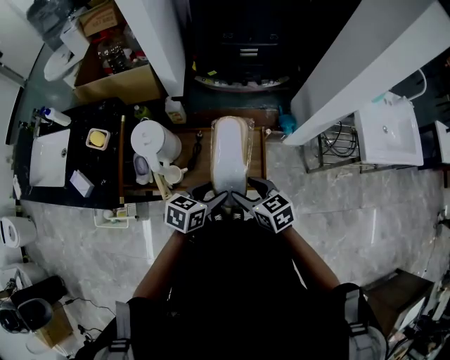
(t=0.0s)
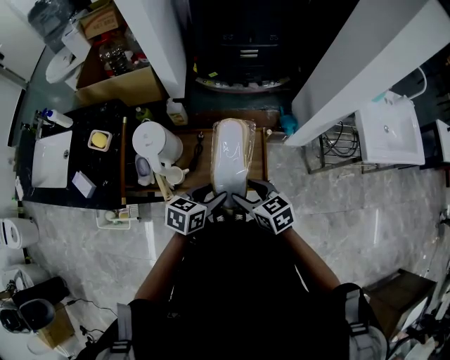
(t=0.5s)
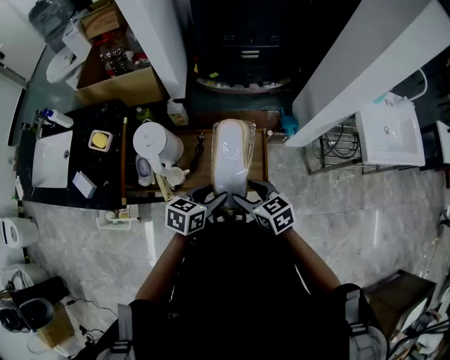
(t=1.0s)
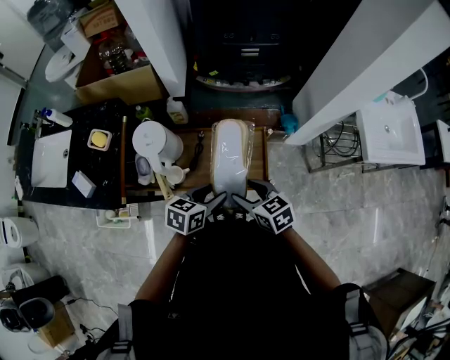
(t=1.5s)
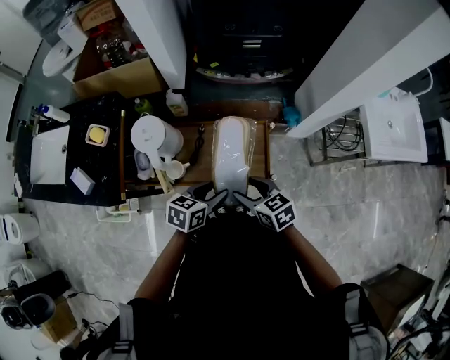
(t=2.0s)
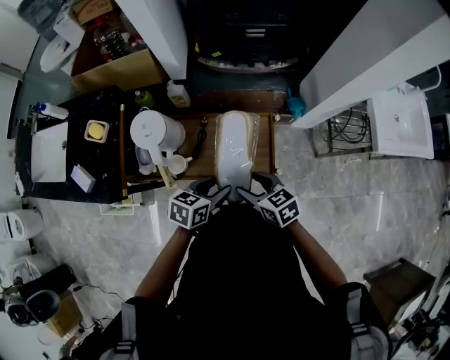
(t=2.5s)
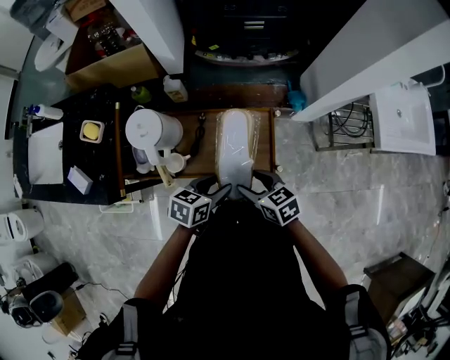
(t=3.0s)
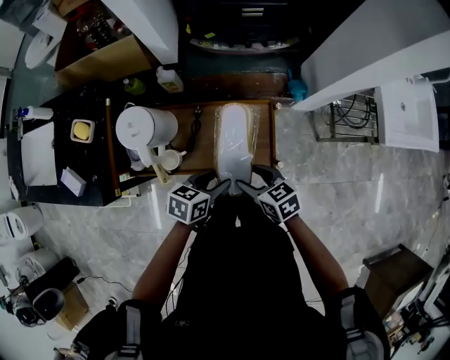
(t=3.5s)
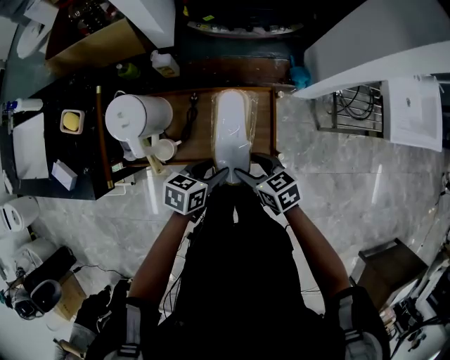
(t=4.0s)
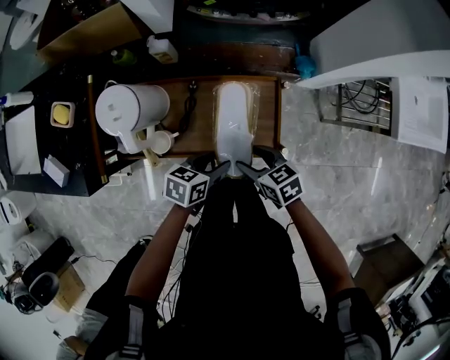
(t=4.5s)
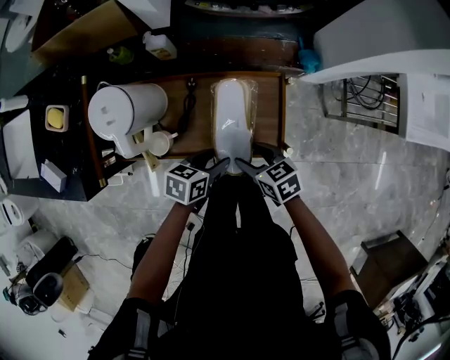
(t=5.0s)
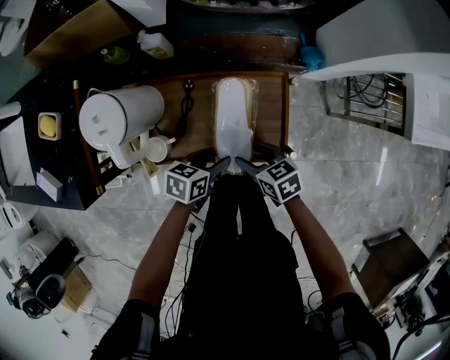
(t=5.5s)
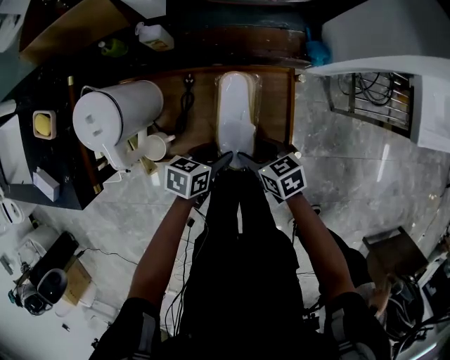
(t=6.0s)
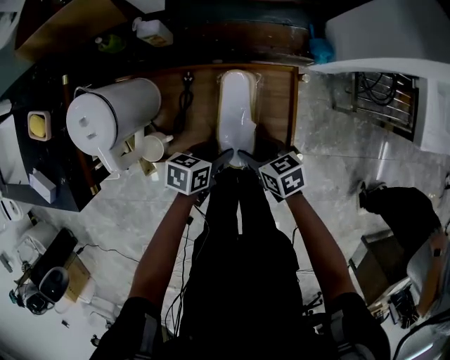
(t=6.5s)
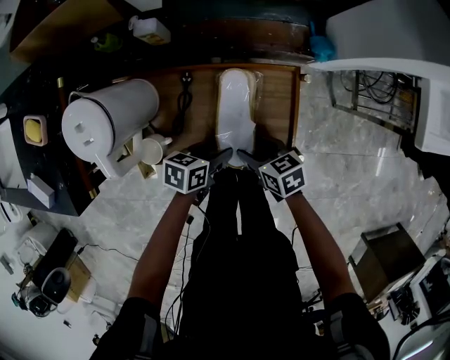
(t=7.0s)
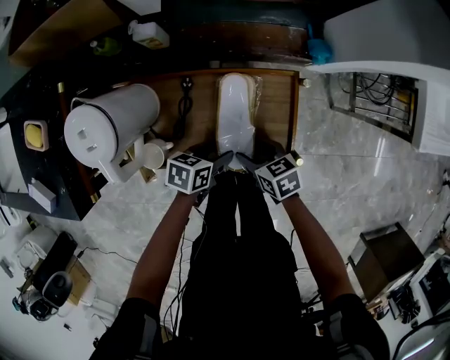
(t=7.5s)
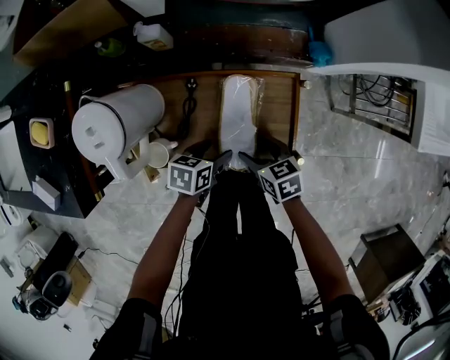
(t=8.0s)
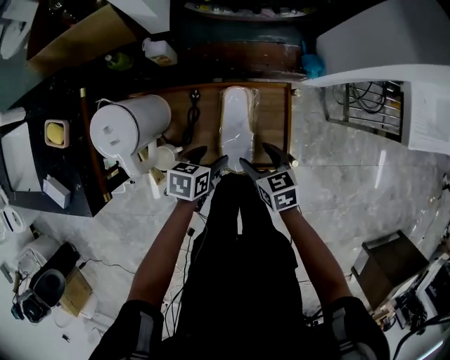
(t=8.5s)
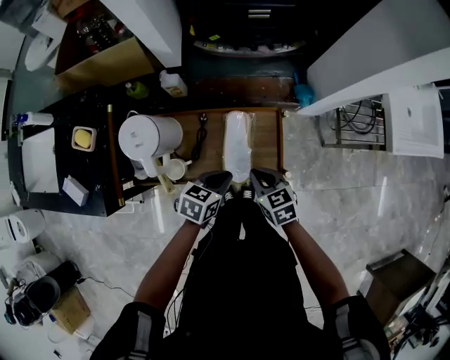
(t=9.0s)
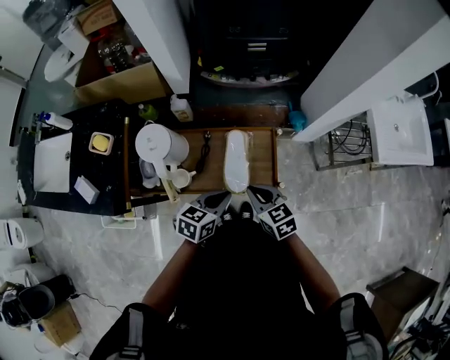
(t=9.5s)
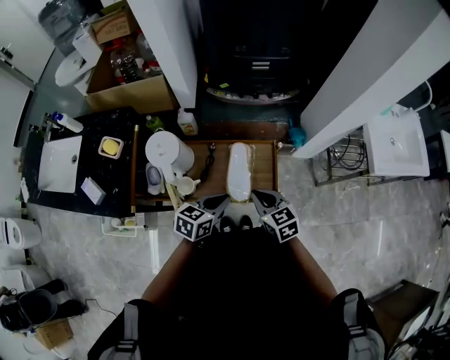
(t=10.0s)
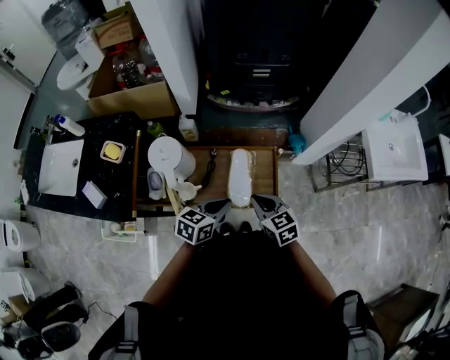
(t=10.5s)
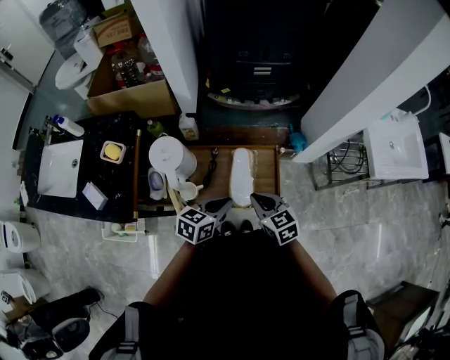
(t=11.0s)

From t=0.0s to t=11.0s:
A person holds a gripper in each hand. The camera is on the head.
From t=0.0s to t=2.0s: The grippers make only small movements.
From t=2.0s to t=3.5s: Both grippers travel together downward, roughly 5 cm.
From t=3.5s to t=5.5s: Both grippers travel together downward, about 15 cm.
From t=5.5s to t=7.5s: The left gripper travels downward by about 5 cm. Meanwhile the right gripper moves approximately 5 cm.
From t=7.5s to t=9.0s: Both grippers travel together upward, approximately 15 cm. The left gripper rotates some 20 degrees, and closes. The right gripper closes up.
From t=9.0s to t=11.0s: The two grippers go some 10 cm upward.

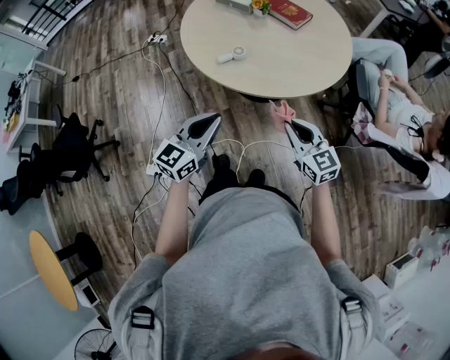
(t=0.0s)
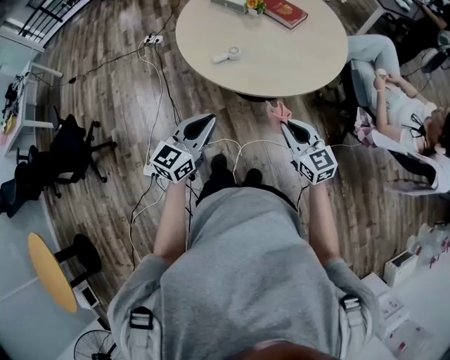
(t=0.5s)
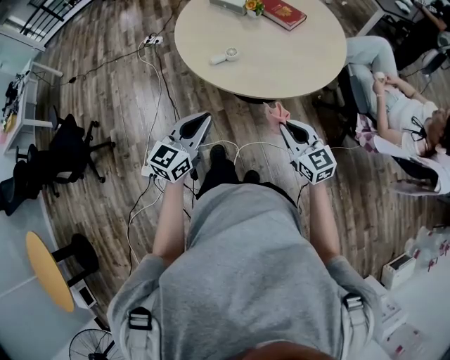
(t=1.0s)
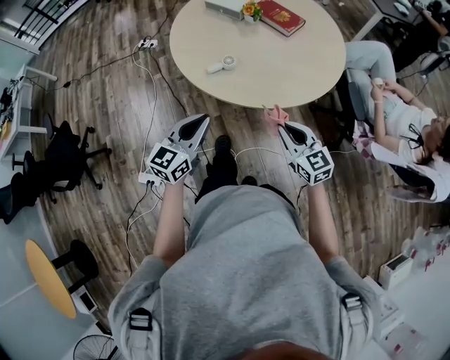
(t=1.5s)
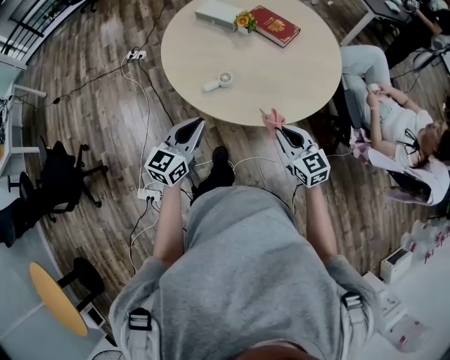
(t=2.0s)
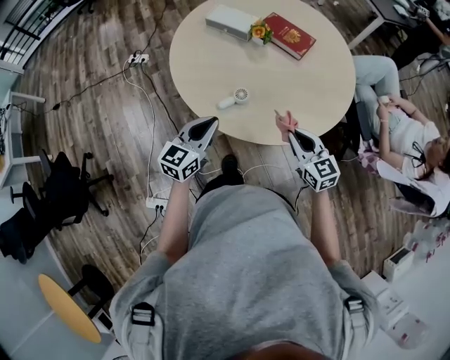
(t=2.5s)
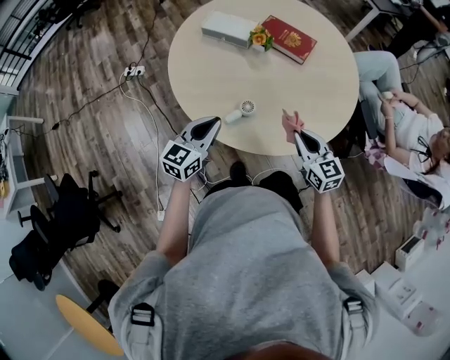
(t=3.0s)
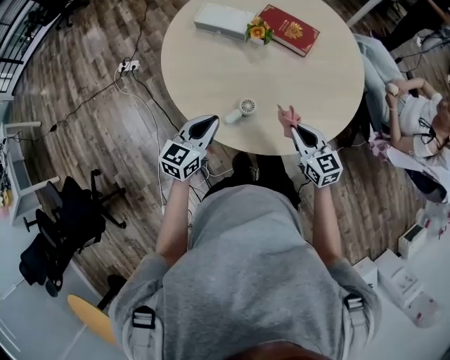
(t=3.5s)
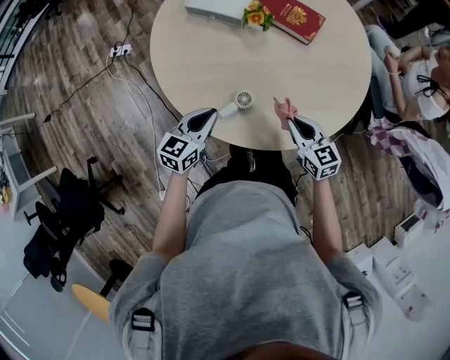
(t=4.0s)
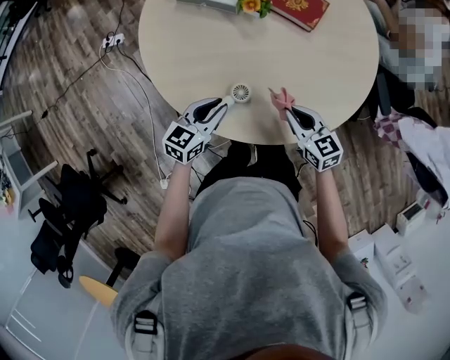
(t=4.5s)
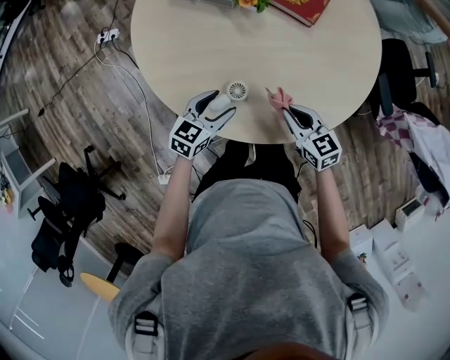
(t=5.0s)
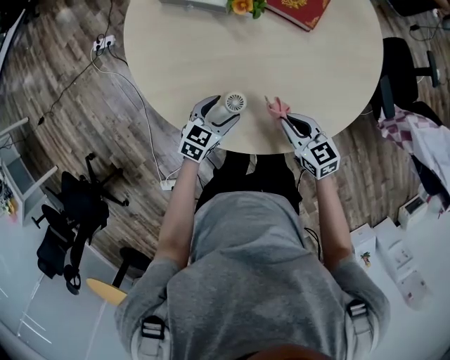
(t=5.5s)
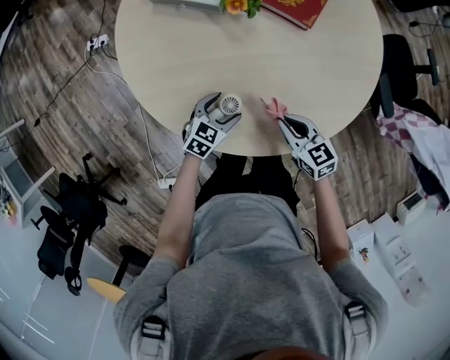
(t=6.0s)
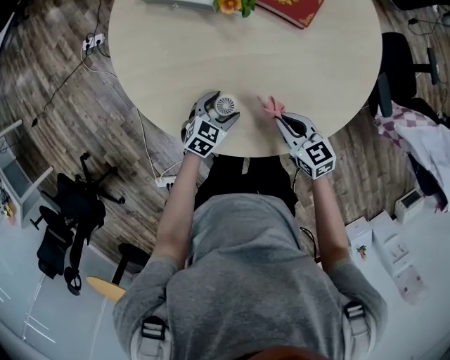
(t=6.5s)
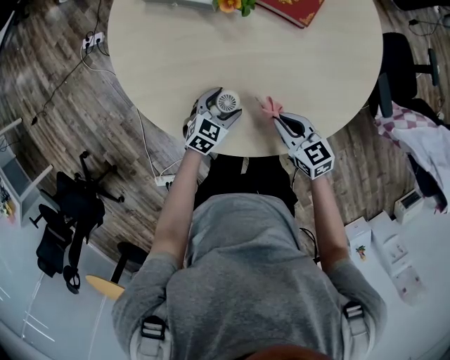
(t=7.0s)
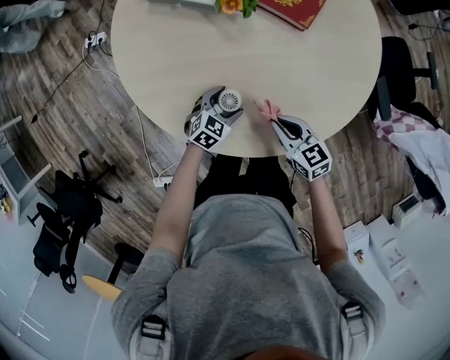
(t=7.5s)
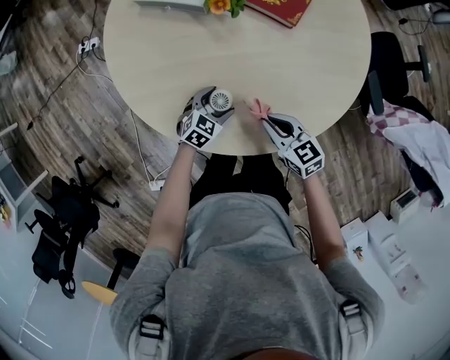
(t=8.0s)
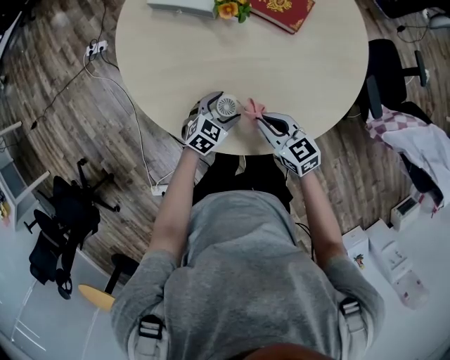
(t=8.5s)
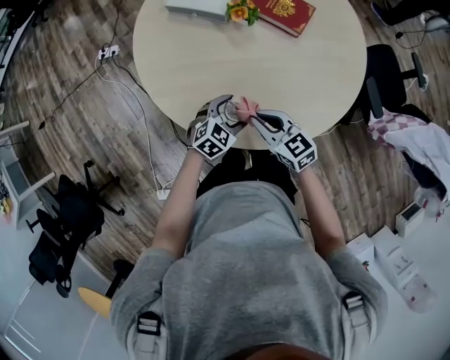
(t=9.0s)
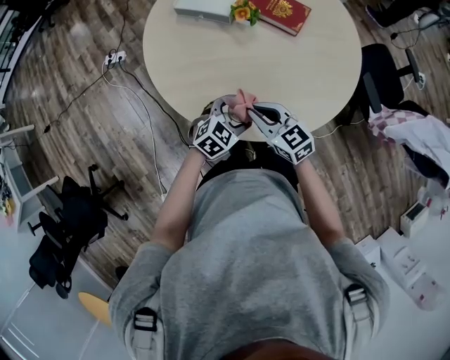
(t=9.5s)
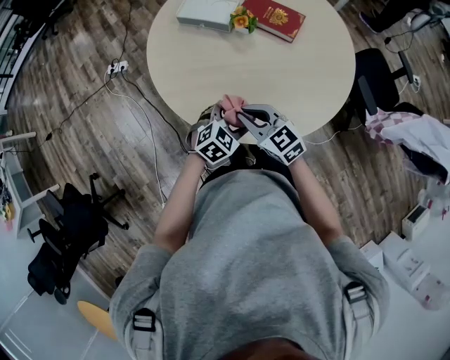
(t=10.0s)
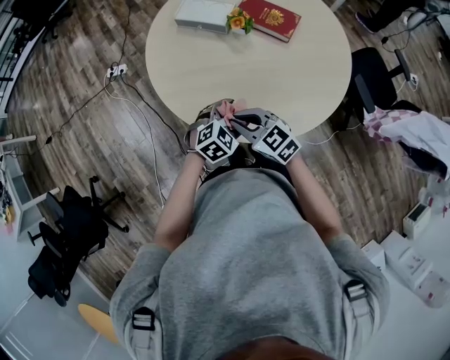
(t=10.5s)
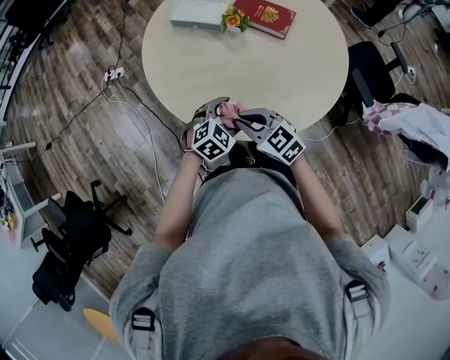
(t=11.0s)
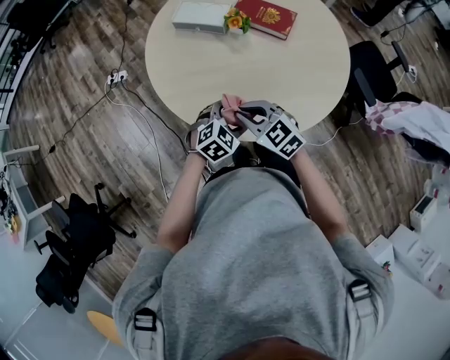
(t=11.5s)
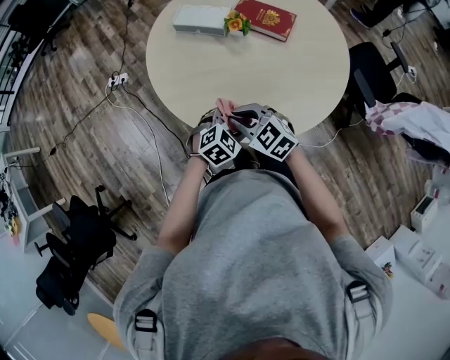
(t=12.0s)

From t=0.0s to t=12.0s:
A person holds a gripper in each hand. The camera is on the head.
From t=0.0s to t=2.0s: Both grippers move forward, approximately 15 cm.
From t=2.0s to t=4.0s: The two grippers go approximately 25 cm forward and downward. The left gripper turns by roughly 20 degrees.
From t=4.0s to t=6.0s: The right gripper shifts roughly 10 cm downward; the left gripper moves downward and to the right, about 20 cm, turns by roughly 30 degrees, and opens up.
From t=6.0s to t=8.0s: There are only small adjustments of the grippers.
From t=8.0s to t=10.0s: The right gripper moves upward, to the left and backward, some 20 cm, and swivels approximately 20 degrees, while the left gripper heads upward and backward, covering some 20 cm.
From t=10.0s to t=12.0s: The grippers move only a little.

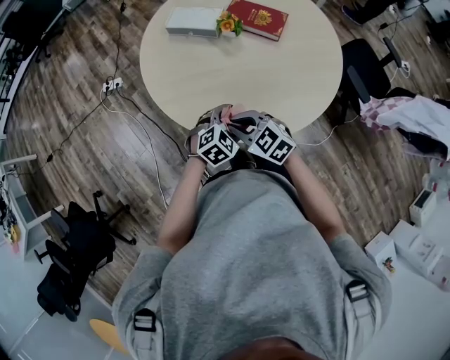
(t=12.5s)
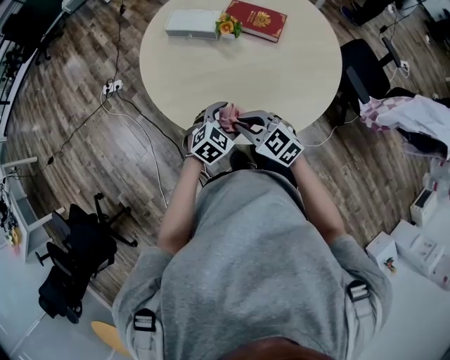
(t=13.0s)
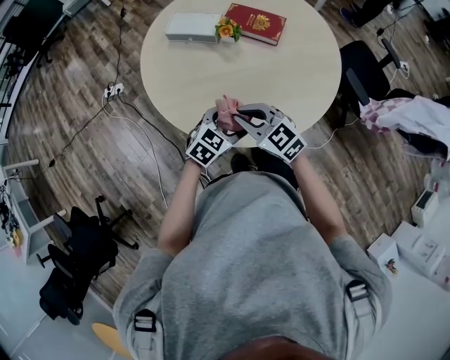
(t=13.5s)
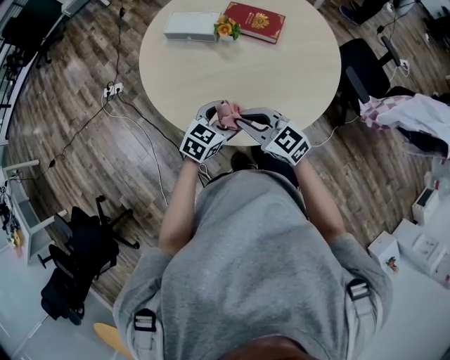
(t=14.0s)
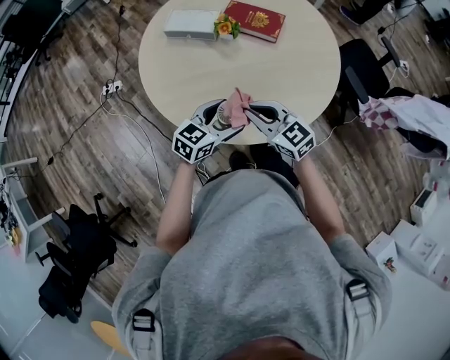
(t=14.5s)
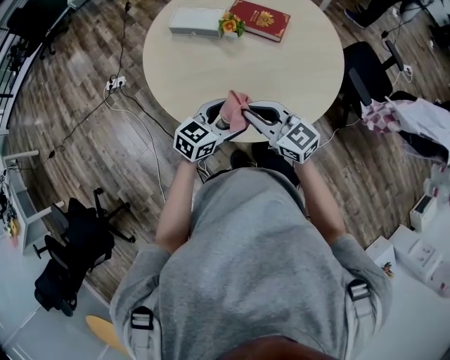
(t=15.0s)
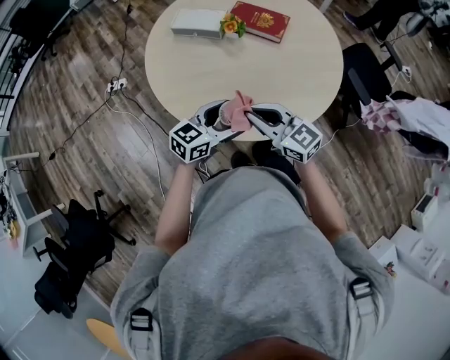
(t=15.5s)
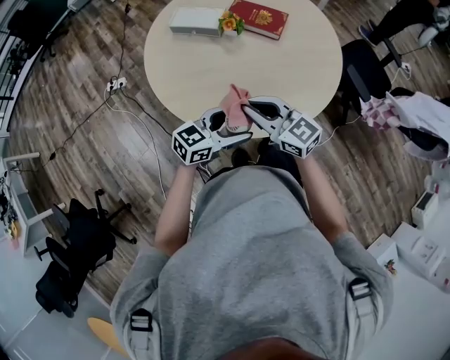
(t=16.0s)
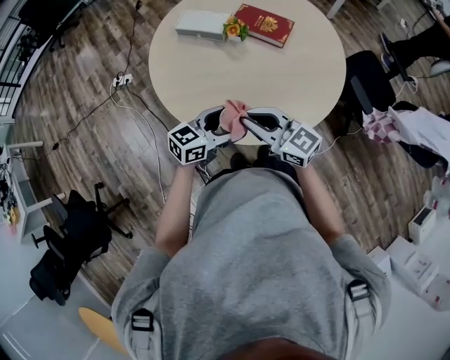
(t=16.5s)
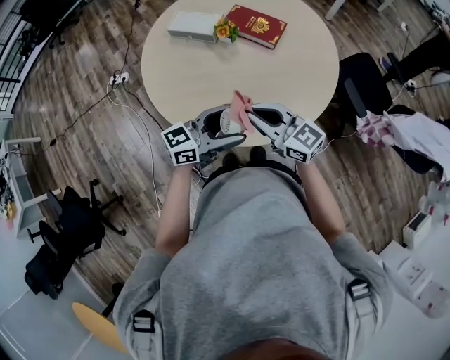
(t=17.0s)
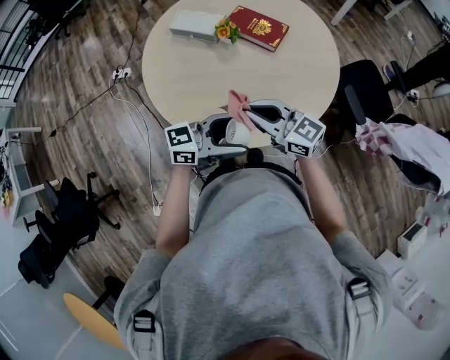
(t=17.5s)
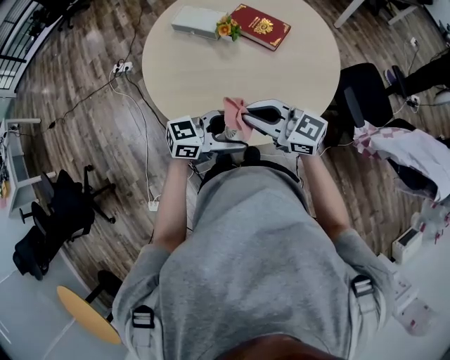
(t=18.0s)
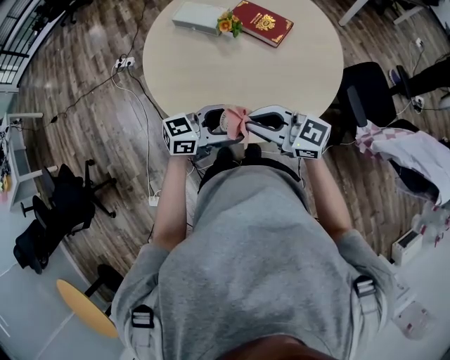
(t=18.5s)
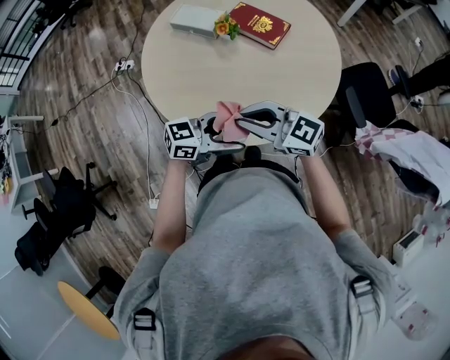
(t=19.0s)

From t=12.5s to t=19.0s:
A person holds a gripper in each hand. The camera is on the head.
From t=12.5s to t=14.5s: The right gripper heads to the right, covering approximately 5 cm, and turns by some 20 degrees. The left gripper moves upward, approximately 10 cm, and turns by approximately 40 degrees.
From t=14.5s to t=17.0s: The grippers both shift upward and to the right by roughly 10 cm. The left gripper turns by some 30 degrees.
From t=17.0s to t=19.0s: The right gripper swivels some 20 degrees; the left gripper changes place by roughly 5 cm.
